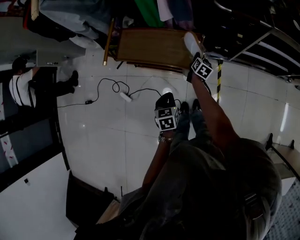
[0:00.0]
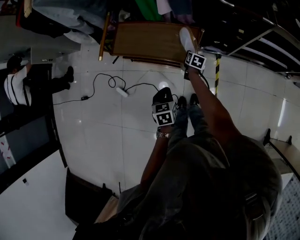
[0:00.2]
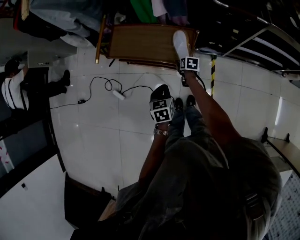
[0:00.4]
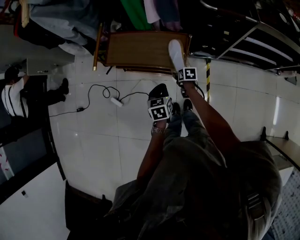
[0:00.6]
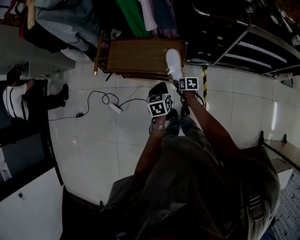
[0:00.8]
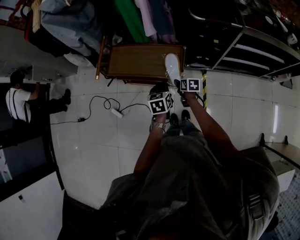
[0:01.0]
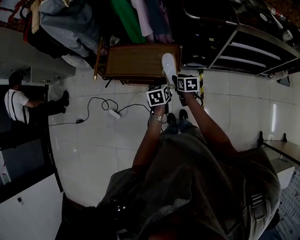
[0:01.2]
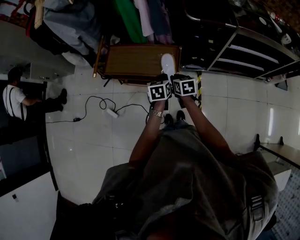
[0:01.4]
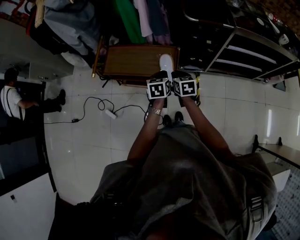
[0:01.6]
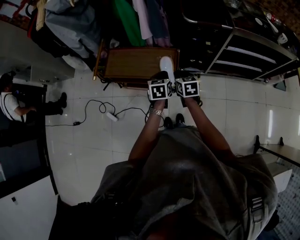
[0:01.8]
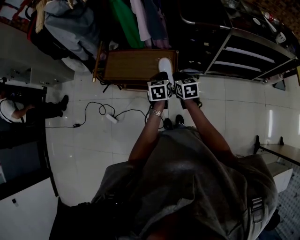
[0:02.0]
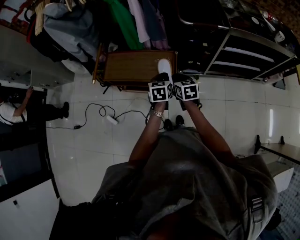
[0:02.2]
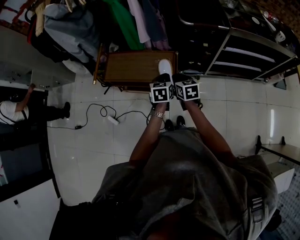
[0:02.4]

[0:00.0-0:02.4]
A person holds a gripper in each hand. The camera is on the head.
0:00.0 to 0:01.2: The left gripper goes roughly 10 cm to the right, forward and upward. The right gripper shifts some 15 cm backward, upward and to the left, changes its angle by approximately 30 degrees, and opens, then closes once more.
0:01.2 to 0:02.4: The right gripper is displaced upward by roughly 10 cm. Meanwhile the left gripper shifts by about 5 cm.

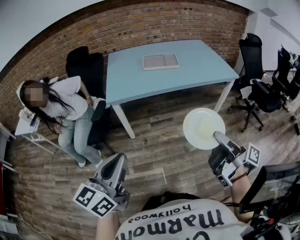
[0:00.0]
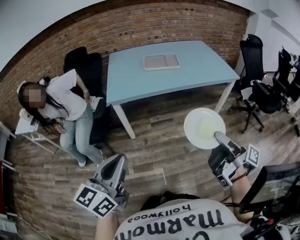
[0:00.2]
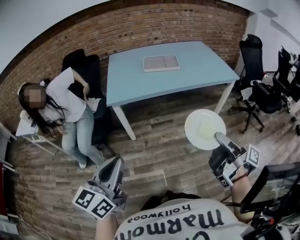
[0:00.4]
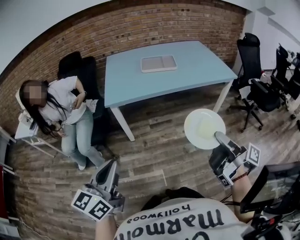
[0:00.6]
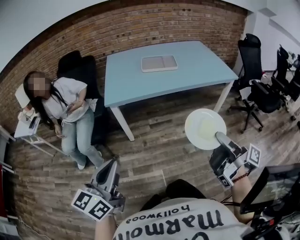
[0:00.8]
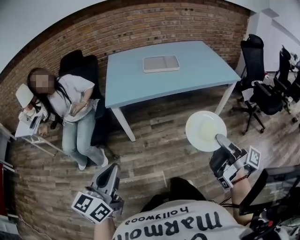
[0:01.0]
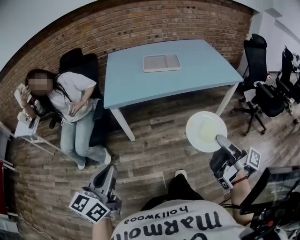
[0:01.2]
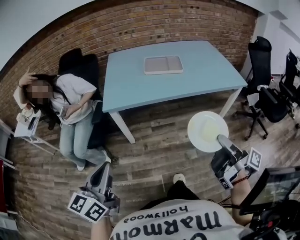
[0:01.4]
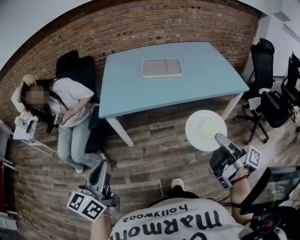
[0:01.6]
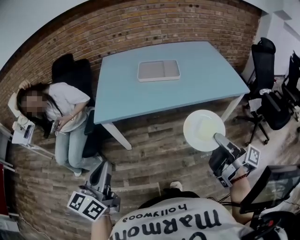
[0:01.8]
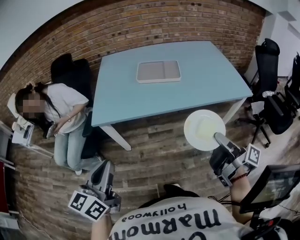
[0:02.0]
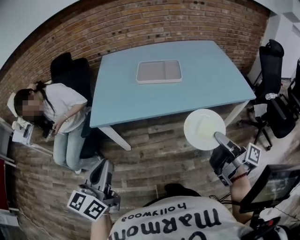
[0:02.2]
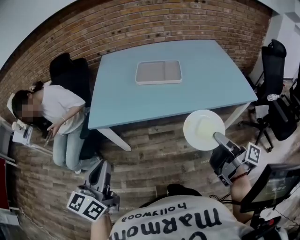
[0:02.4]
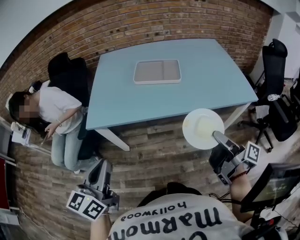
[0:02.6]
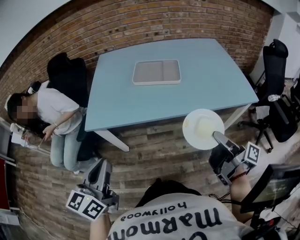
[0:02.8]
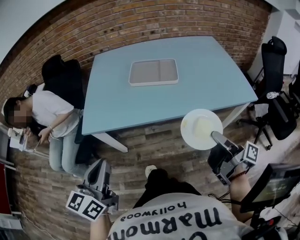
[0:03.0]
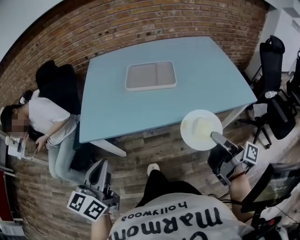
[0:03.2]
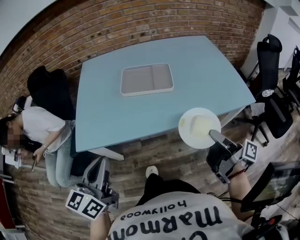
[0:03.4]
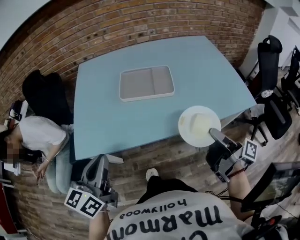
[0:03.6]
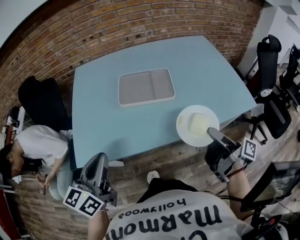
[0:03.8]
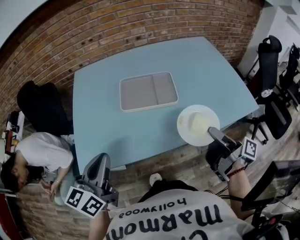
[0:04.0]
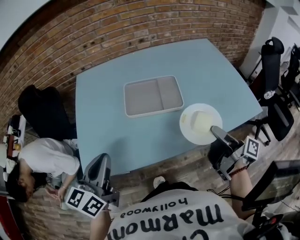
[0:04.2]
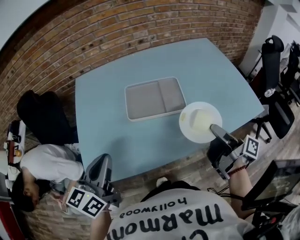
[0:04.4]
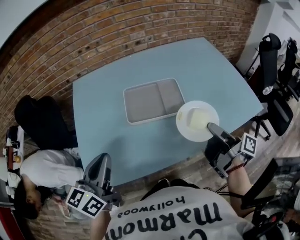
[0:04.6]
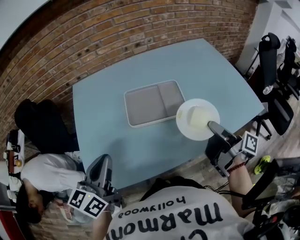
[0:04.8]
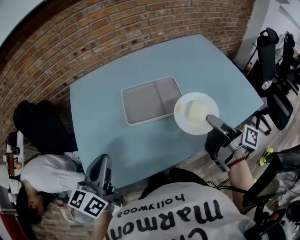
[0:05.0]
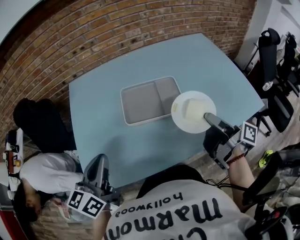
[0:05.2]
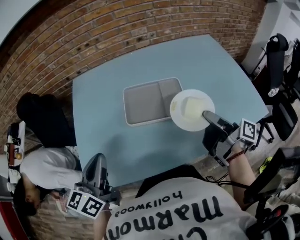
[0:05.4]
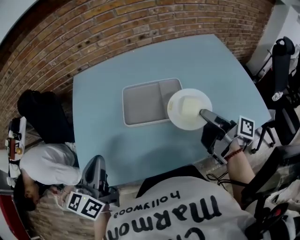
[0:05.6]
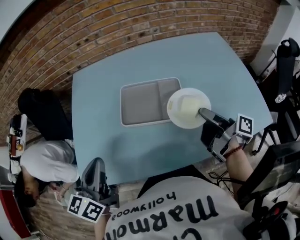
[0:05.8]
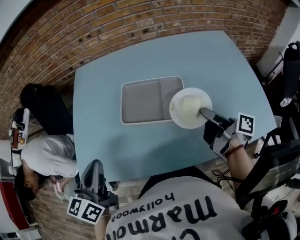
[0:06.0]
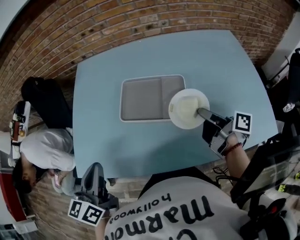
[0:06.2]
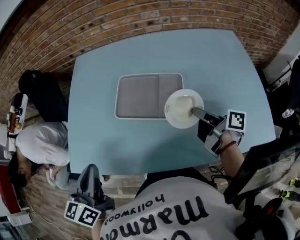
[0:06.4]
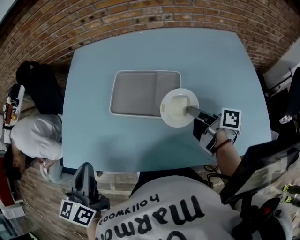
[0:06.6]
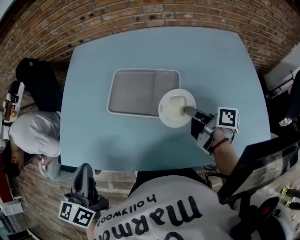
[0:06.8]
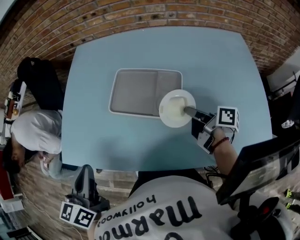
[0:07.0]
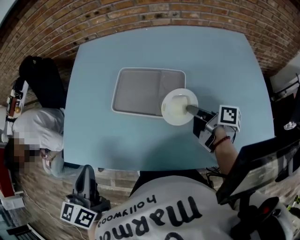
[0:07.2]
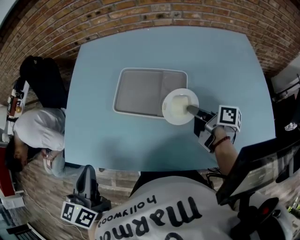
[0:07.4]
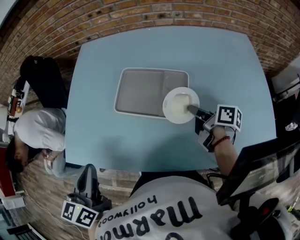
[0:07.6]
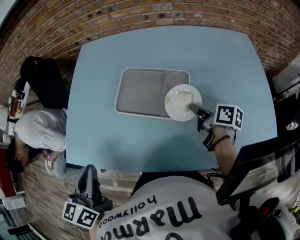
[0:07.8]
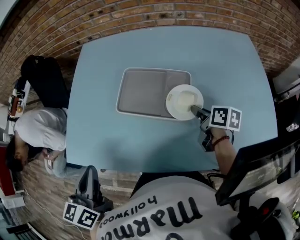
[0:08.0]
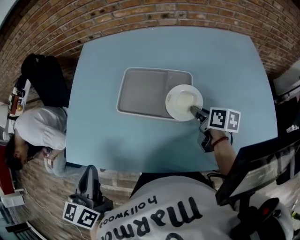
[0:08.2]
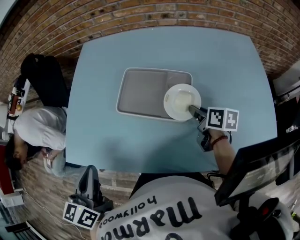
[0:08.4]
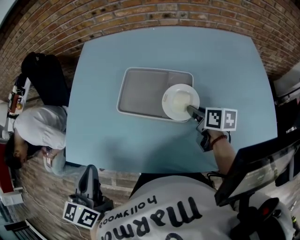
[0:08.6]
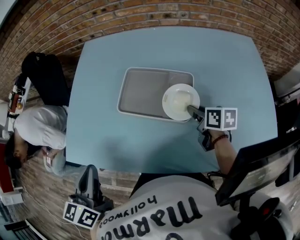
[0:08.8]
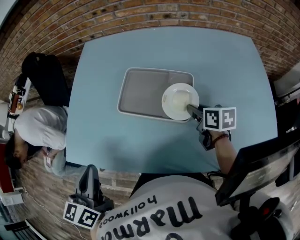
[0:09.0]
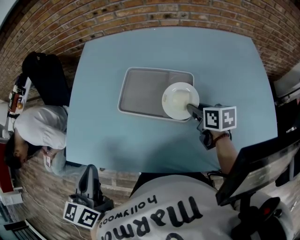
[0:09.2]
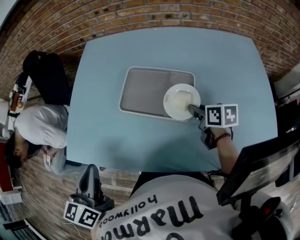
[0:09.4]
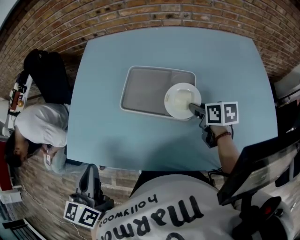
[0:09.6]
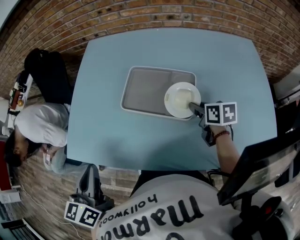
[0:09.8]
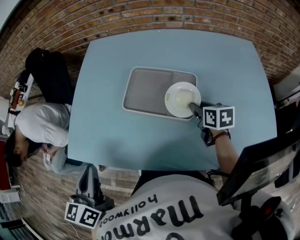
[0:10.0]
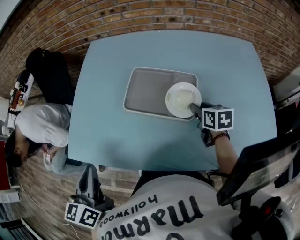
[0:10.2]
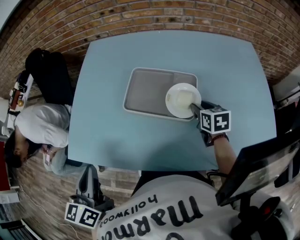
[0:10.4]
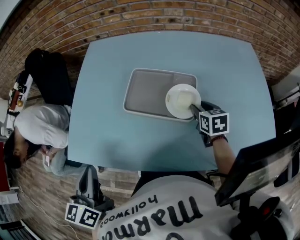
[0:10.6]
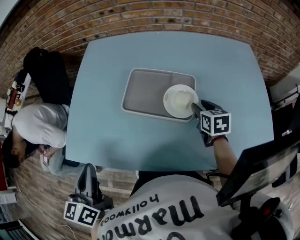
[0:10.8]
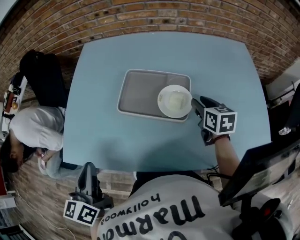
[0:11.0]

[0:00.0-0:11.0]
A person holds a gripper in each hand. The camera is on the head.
0:00.0 to 0:01.6: The left gripper travels forward by roughly 15 cm, while the right gripper heads forward and to the right, covering approximately 15 cm.
0:01.6 to 0:03.2: Both grippers travel together forward and to the right, approximately 25 cm.
0:03.2 to 0:04.8: Both grippers move forward, some 25 cm.
0:04.8 to 0:06.2: The right gripper heads forward, downward and to the right, covering some 15 cm, and swivels about 30 degrees. The left gripper shifts roughly 5 cm to the right, and changes its angle by approximately 20 degrees.
0:06.2 to 0:07.8: The right gripper shifts approximately 10 cm downward and forward, and turns by some 20 degrees.
0:07.8 to 0:09.4: The right gripper turns by roughly 30 degrees.
0:09.4 to 0:11.0: The right gripper changes place by roughly 5 cm, and changes its angle by about 20 degrees.

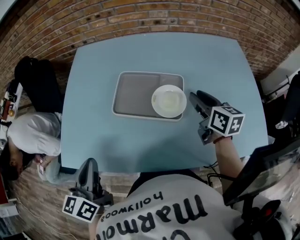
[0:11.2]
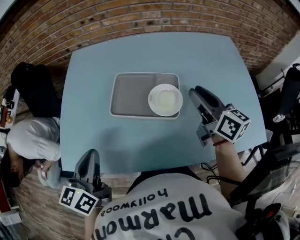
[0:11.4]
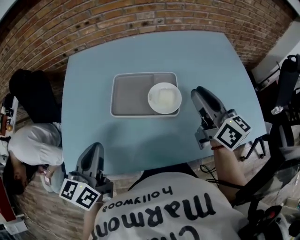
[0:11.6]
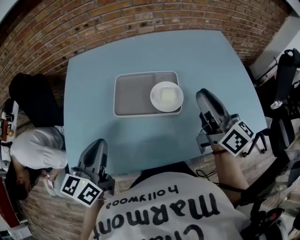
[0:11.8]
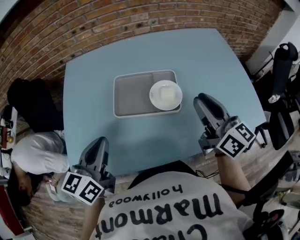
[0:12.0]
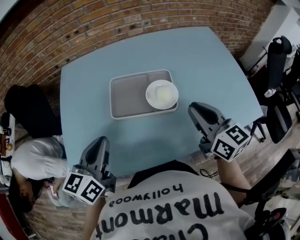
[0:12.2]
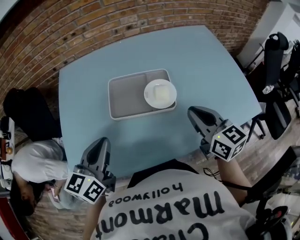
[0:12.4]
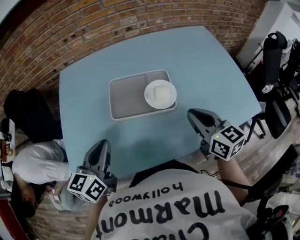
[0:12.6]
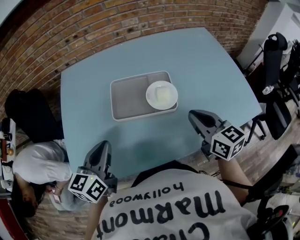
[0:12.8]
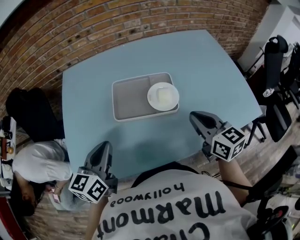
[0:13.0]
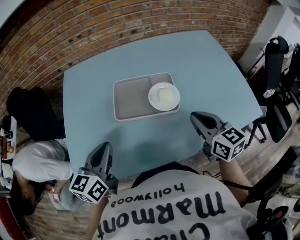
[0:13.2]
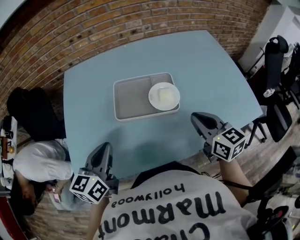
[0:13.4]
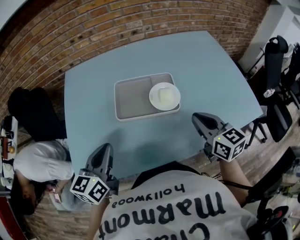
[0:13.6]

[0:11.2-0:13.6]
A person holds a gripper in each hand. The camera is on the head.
0:11.2 to 0:12.4: The right gripper travels backward by about 15 cm, and closes its fingers. The left gripper travels forward by roughly 5 cm, and swivels some 30 degrees.
0:12.4 to 0:13.6: The grippers make only small movements.

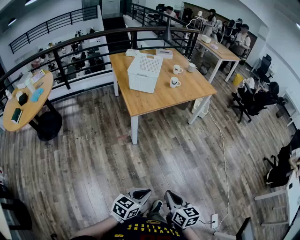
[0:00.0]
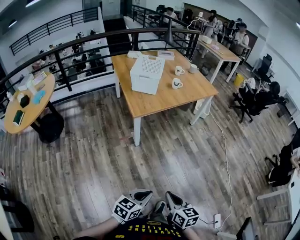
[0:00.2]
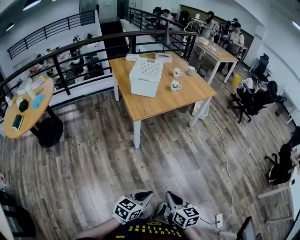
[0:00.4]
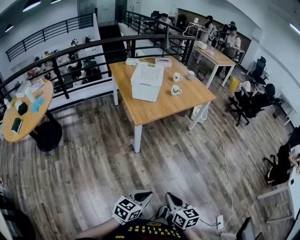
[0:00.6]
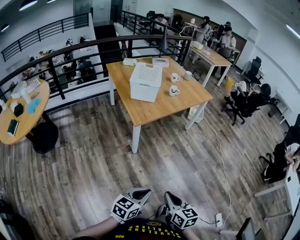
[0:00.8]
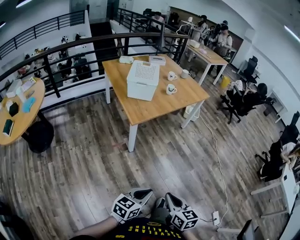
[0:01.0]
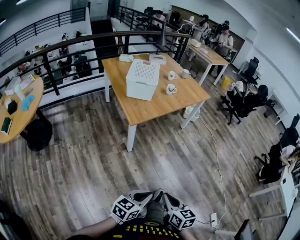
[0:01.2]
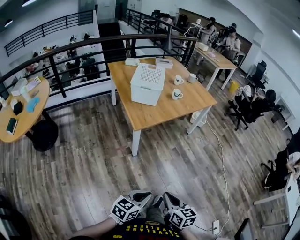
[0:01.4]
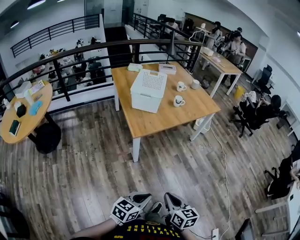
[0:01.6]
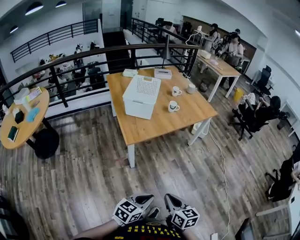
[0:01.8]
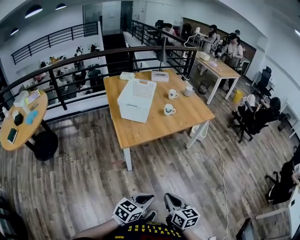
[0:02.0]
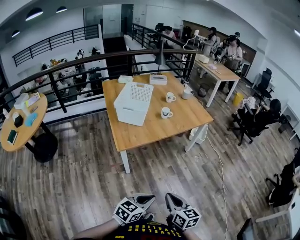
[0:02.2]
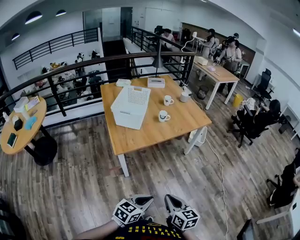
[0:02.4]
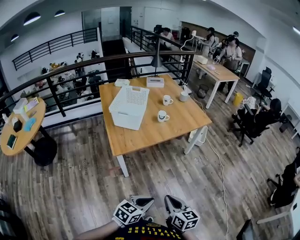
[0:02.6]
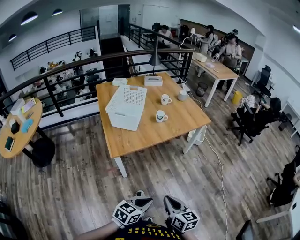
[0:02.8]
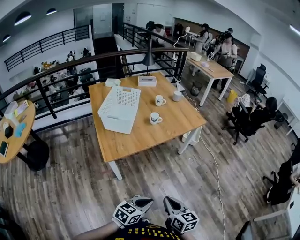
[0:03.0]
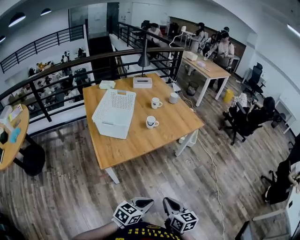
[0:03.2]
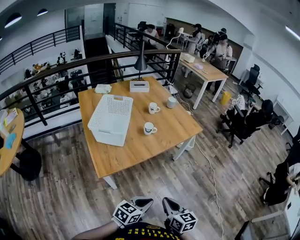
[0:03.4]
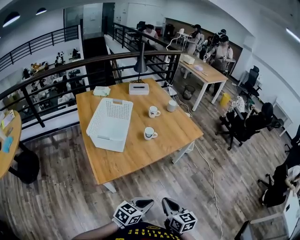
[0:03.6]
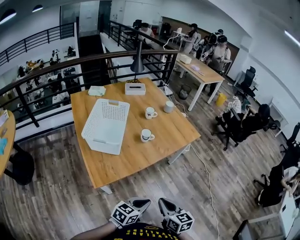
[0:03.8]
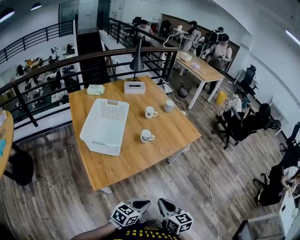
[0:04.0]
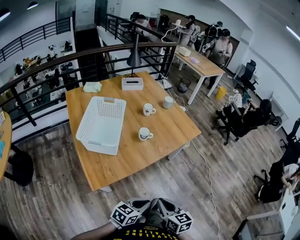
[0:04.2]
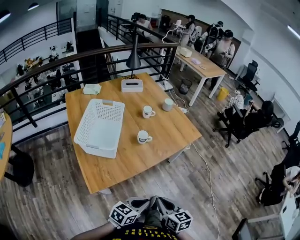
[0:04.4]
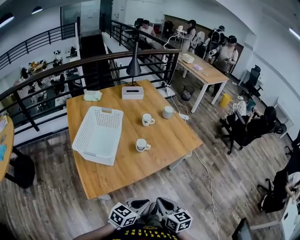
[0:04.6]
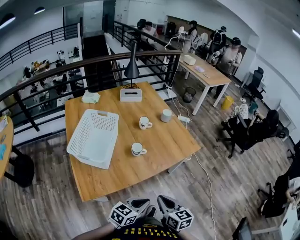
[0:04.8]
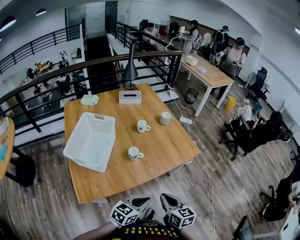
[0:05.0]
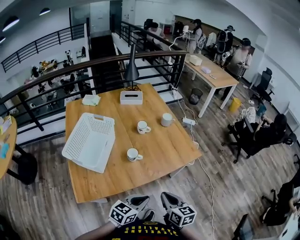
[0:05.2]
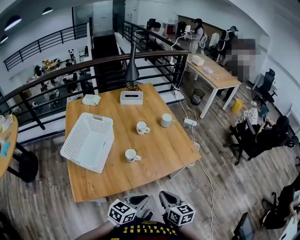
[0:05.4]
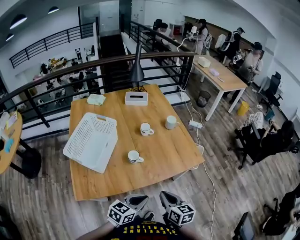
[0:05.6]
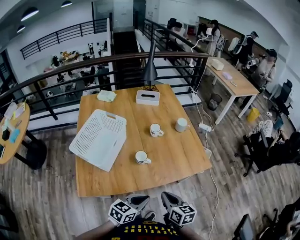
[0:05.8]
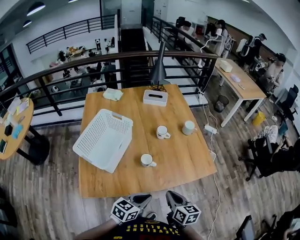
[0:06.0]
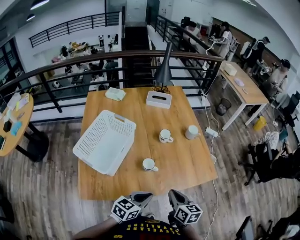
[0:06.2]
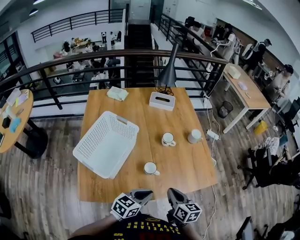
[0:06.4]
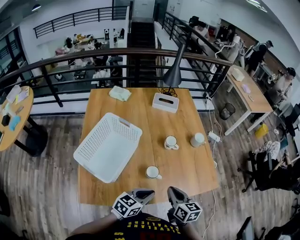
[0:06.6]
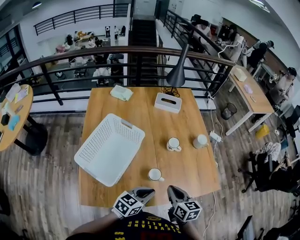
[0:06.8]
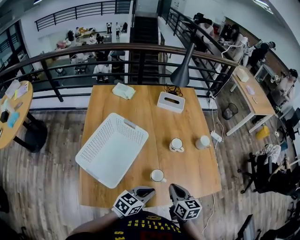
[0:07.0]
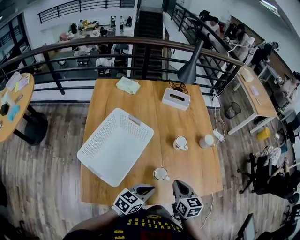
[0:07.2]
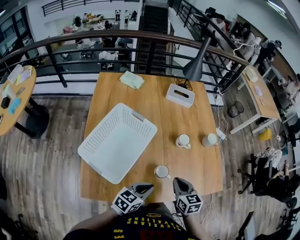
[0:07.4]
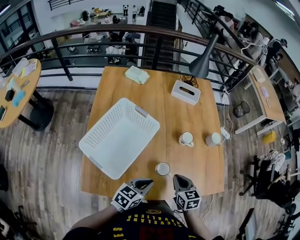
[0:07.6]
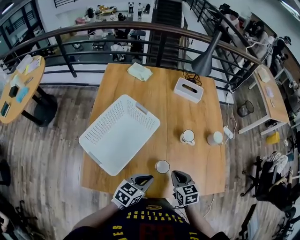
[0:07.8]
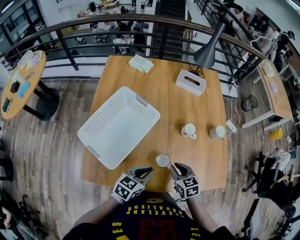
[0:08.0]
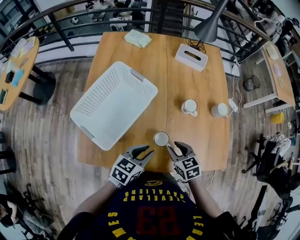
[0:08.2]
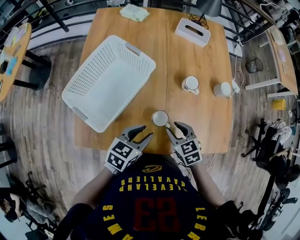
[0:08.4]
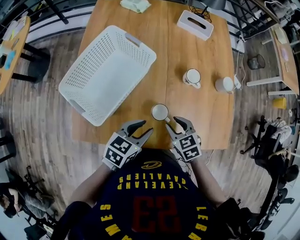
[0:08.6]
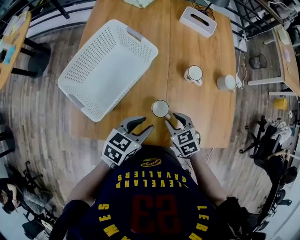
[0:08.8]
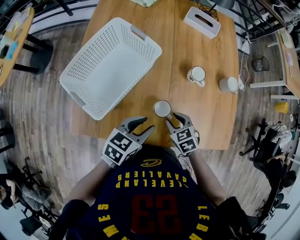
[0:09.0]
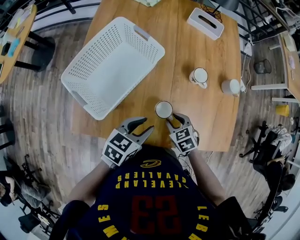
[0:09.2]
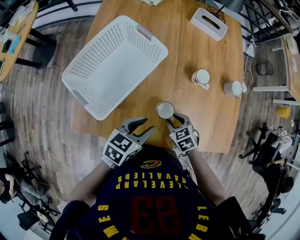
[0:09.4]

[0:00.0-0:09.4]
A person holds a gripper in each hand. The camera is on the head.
0:00.0 to 0:01.6: The two grippers go about 15 cm forward and to the left.
0:01.6 to 0:03.2: Both grippers move forward and to the right, about 25 cm.
0:03.2 to 0:04.8: Both grippers travel together forward, roughly 25 cm.
0:04.8 to 0:06.2: The grippers both shift forward by roughly 20 cm.
0:06.2 to 0:07.8: The right gripper heads forward, to the left and downward, covering roughly 15 cm, and rotates roughly 40 degrees. Meanwhile the left gripper goes about 15 cm forward and to the left.
0:07.8 to 0:09.4: The left gripper opens its fingers, while the right gripper goes roughly 10 cm downward, turns by roughly 30 degrees, and opens its fingers.
